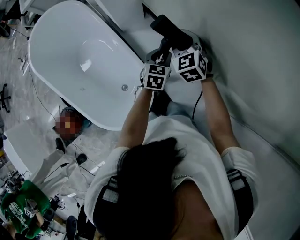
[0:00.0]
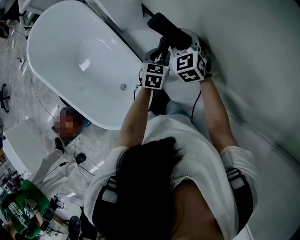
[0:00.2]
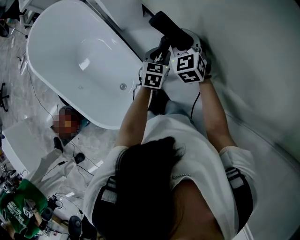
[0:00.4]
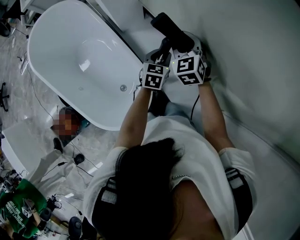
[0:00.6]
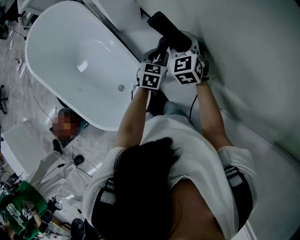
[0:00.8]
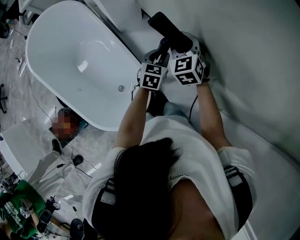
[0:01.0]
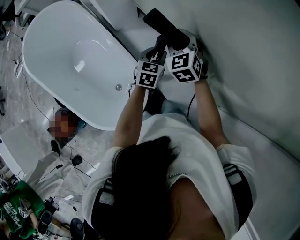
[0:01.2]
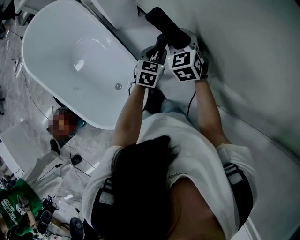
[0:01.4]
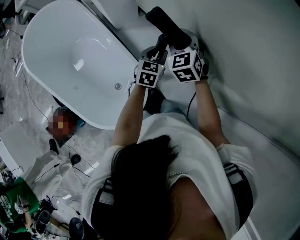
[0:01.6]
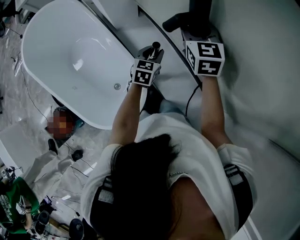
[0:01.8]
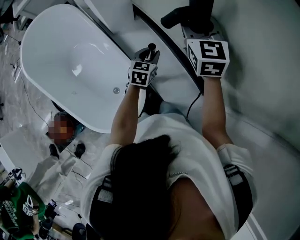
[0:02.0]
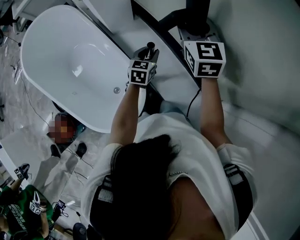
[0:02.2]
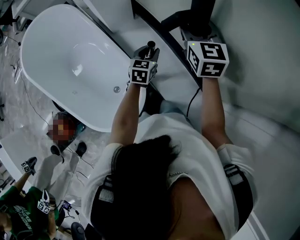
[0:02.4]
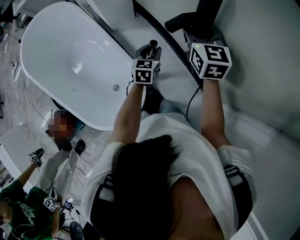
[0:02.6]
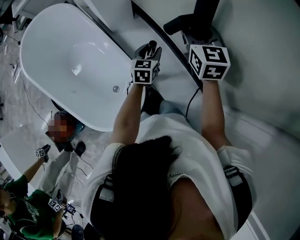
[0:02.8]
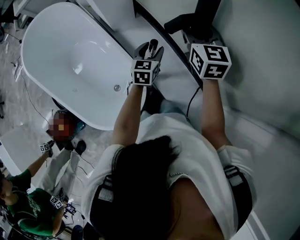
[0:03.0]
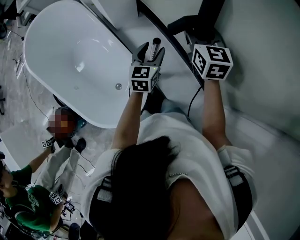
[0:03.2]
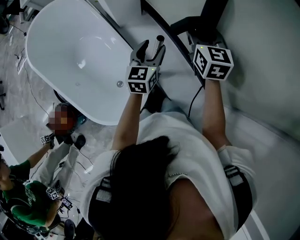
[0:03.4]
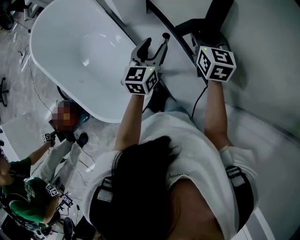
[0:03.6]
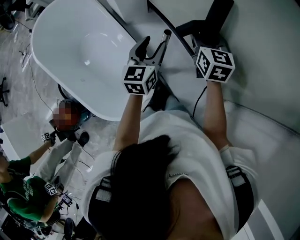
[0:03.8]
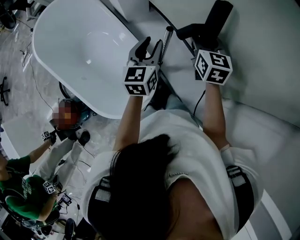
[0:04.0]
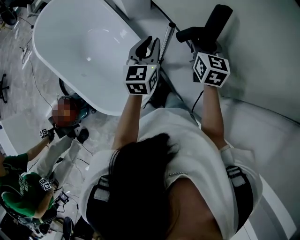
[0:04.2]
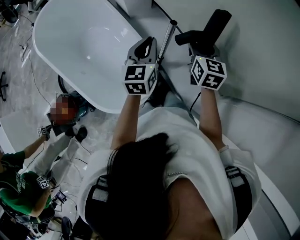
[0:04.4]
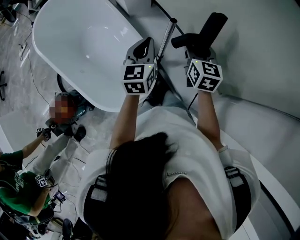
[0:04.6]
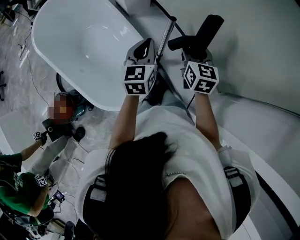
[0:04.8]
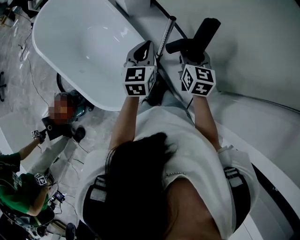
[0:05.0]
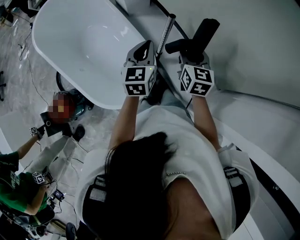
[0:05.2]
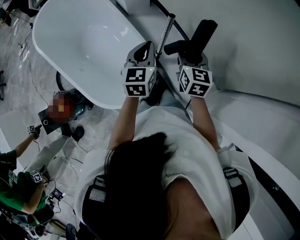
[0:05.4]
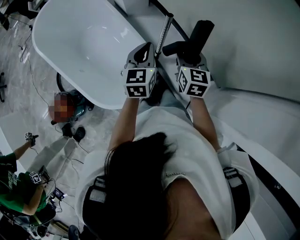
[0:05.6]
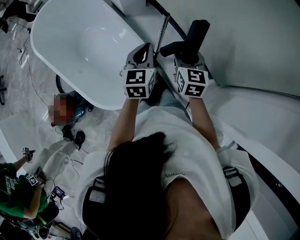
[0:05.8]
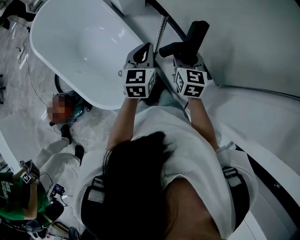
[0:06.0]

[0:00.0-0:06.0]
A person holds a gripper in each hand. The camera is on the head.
0.0 to 1.6 s: The grippers make only small movements.
1.6 to 3.0 s: The left gripper opens up, while the right gripper shifts roughly 10 cm upward, and changes its angle by approximately 30 degrees.
3.0 to 4.4 s: The left gripper heads backward, to the left and upward, covering about 15 cm, and closes its fingers, while the right gripper moves backward and downward, approximately 15 cm.
4.4 to 6.0 s: Both grippers move backward, approximately 10 cm.

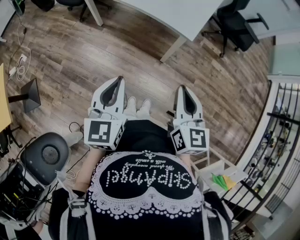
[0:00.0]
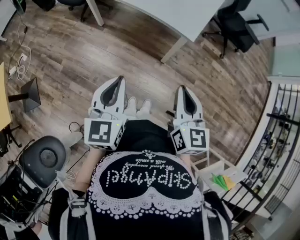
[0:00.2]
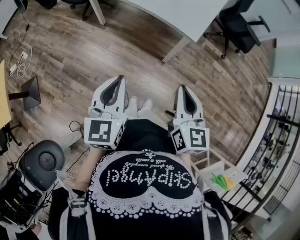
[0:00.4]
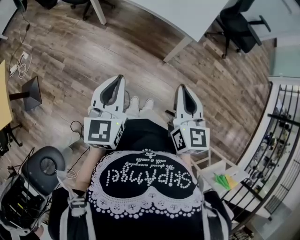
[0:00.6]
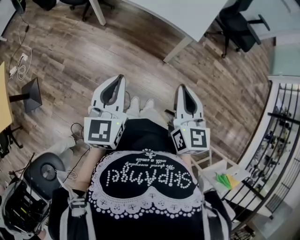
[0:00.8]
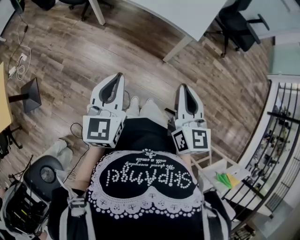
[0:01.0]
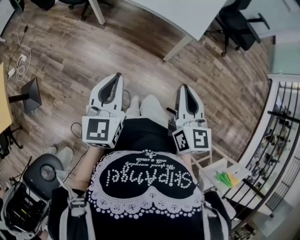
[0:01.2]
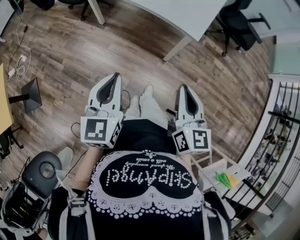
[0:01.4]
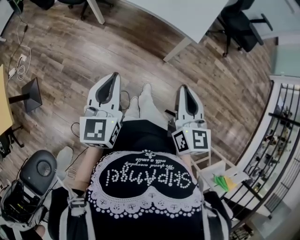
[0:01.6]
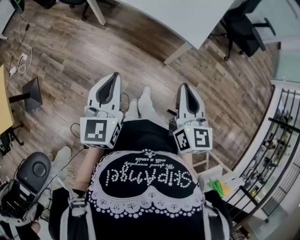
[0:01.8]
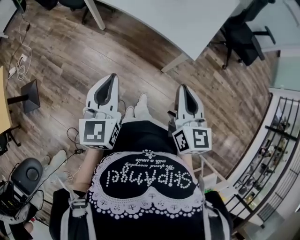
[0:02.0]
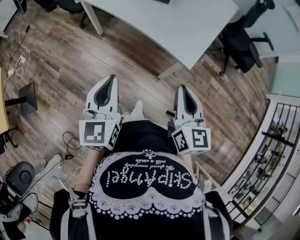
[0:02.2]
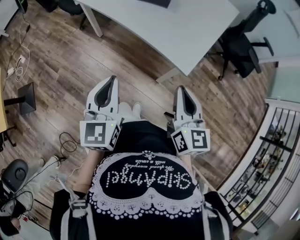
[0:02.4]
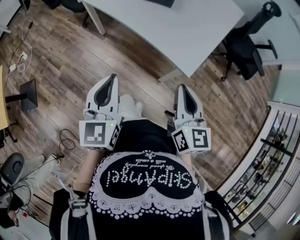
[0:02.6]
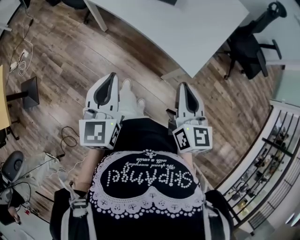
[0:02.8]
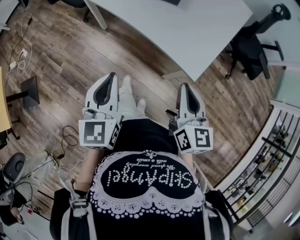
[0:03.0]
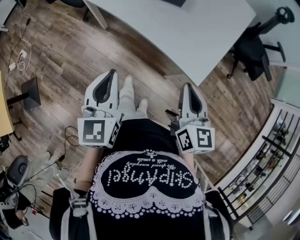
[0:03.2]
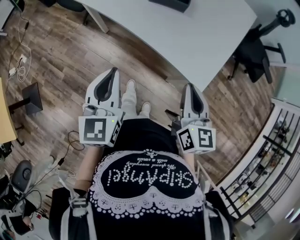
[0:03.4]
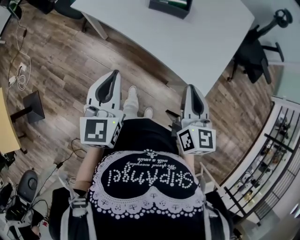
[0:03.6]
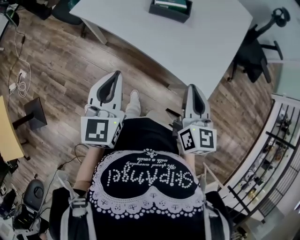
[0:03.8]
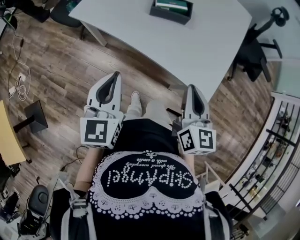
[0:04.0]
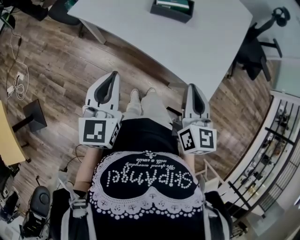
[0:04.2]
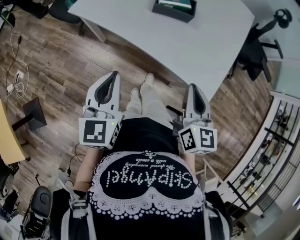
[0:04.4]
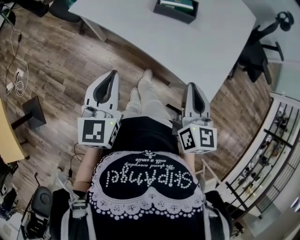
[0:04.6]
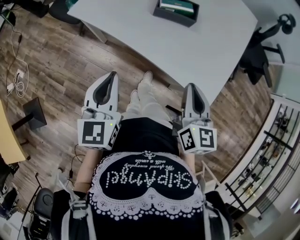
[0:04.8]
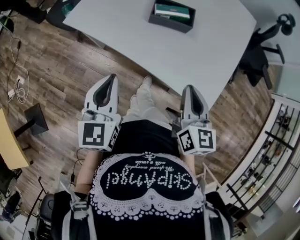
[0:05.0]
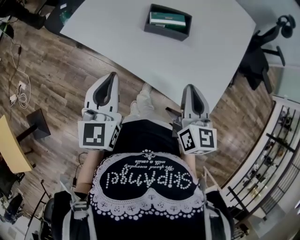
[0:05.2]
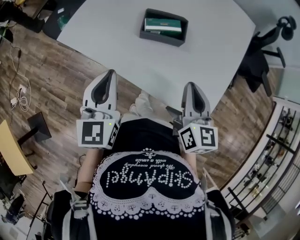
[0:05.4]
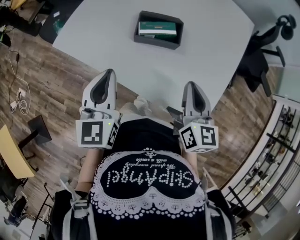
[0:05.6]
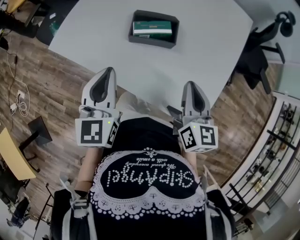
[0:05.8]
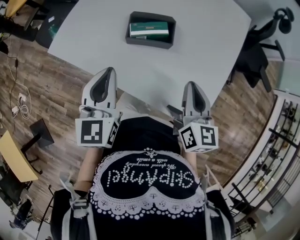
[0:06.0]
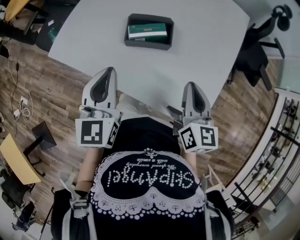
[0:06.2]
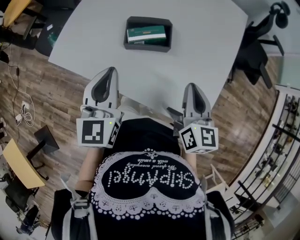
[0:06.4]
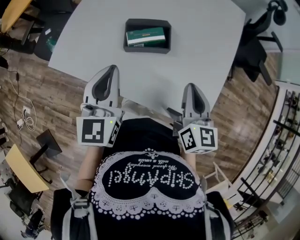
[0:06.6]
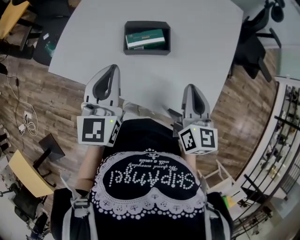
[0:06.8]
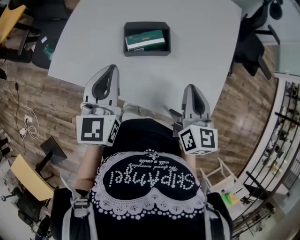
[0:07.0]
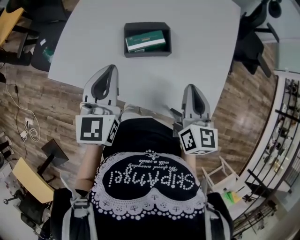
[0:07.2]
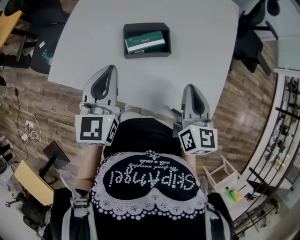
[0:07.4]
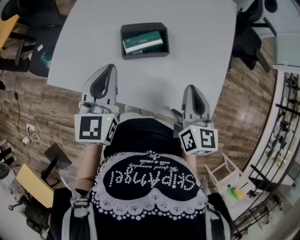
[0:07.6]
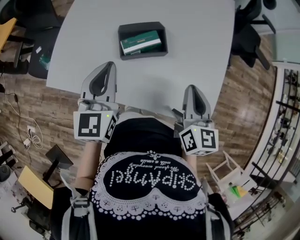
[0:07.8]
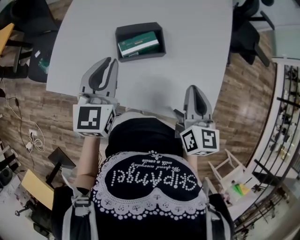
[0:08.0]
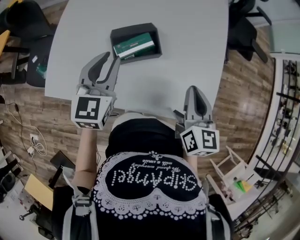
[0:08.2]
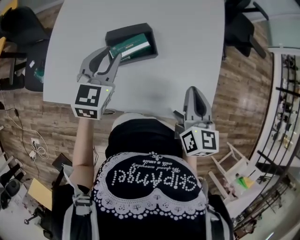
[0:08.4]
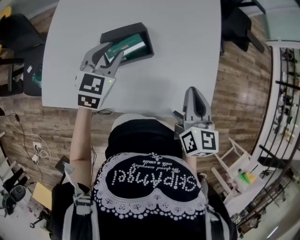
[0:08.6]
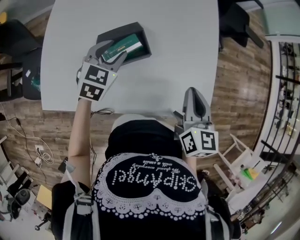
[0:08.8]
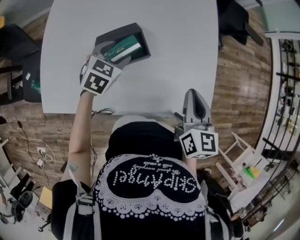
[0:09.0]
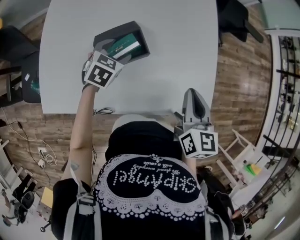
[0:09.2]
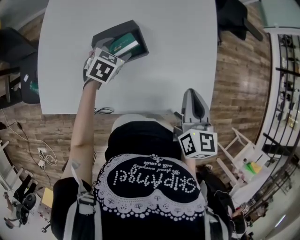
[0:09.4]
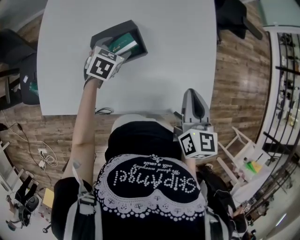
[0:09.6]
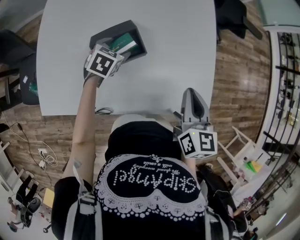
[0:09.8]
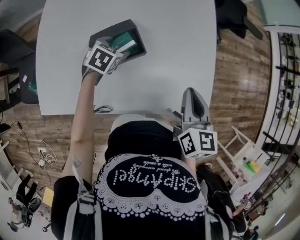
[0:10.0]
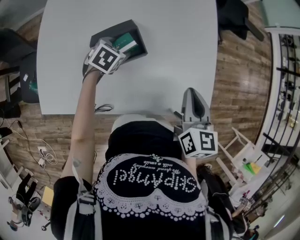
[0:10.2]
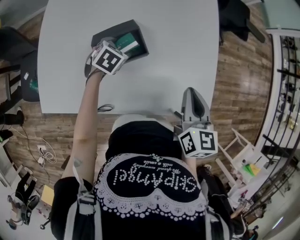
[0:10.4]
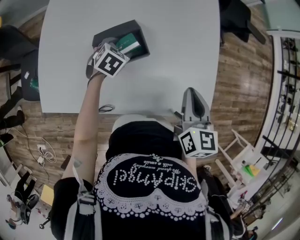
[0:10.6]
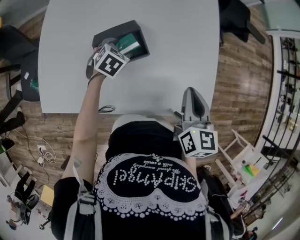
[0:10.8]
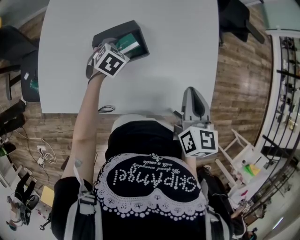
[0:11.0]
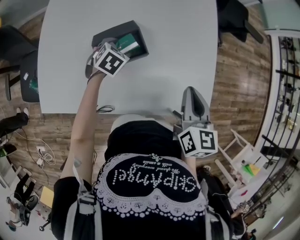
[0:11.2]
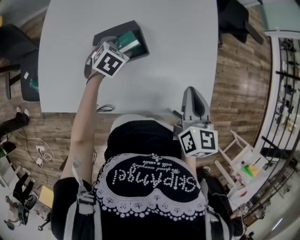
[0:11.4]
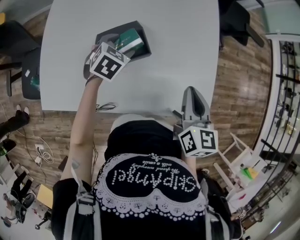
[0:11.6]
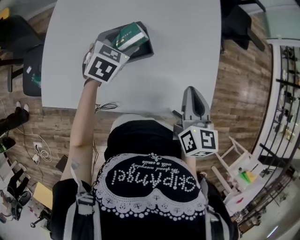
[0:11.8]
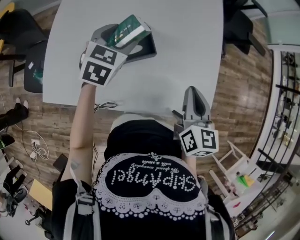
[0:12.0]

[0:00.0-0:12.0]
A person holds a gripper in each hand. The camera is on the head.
0.0 to 1.6 s: The left gripper changes place by roughly 5 cm.
1.6 to 3.0 s: Both grippers move forward, about 20 cm.
3.0 to 4.4 s: Both grippers move forward and to the left, roughly 15 cm.
4.4 to 6.0 s: The left gripper moves forward, about 20 cm, while the right gripper goes approximately 20 cm forward and to the right.
6.0 to 7.6 s: The left gripper heads forward, covering about 10 cm.
7.6 to 9.0 s: The right gripper moves to the right, about 5 cm; the left gripper travels downward, forward and to the right by about 25 cm, points its fingers approximately 30 degrees further downward, and opens its fingers.
9.0 to 10.4 s: The left gripper travels downward by roughly 10 cm.
10.4 to 12.0 s: The left gripper shifts approximately 15 cm upward, and swivels approximately 30 degrees.

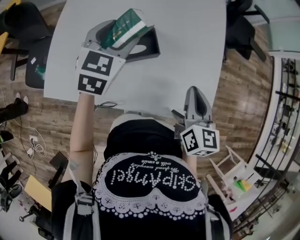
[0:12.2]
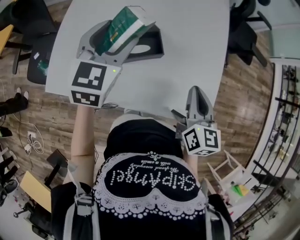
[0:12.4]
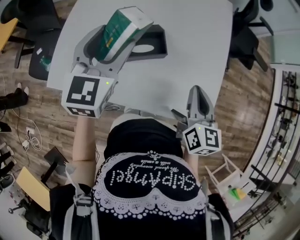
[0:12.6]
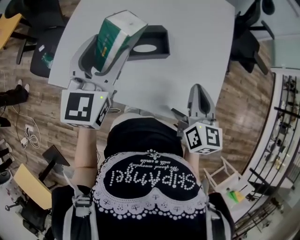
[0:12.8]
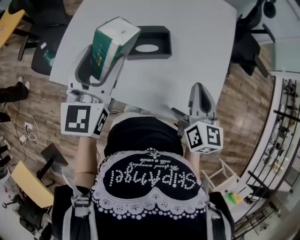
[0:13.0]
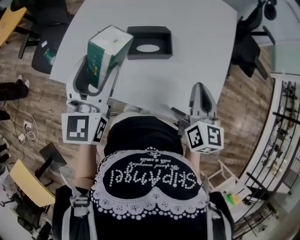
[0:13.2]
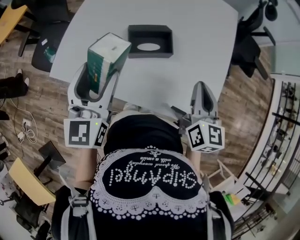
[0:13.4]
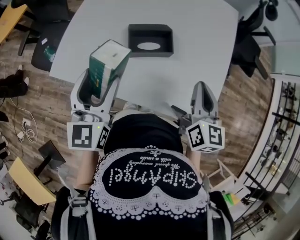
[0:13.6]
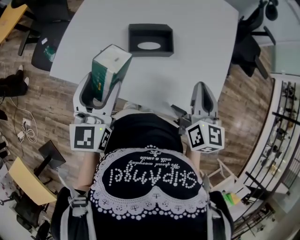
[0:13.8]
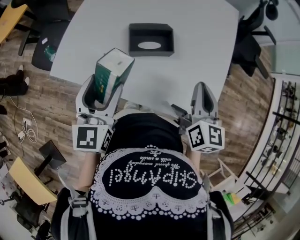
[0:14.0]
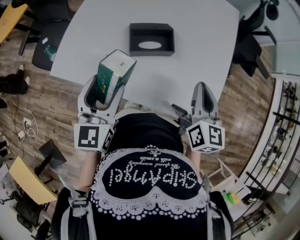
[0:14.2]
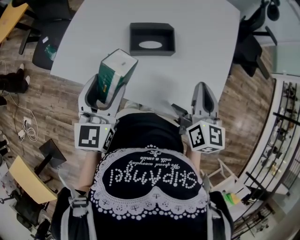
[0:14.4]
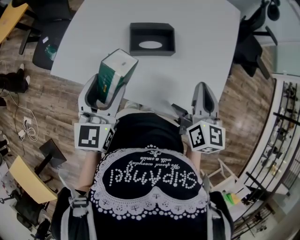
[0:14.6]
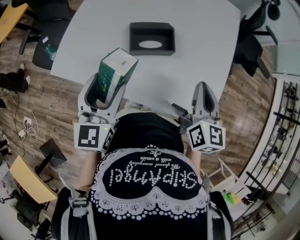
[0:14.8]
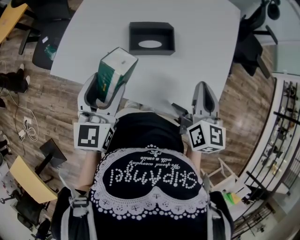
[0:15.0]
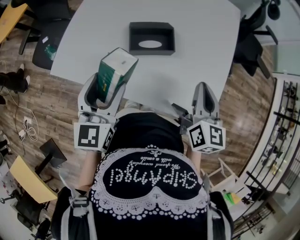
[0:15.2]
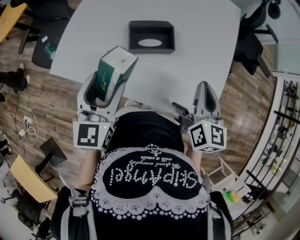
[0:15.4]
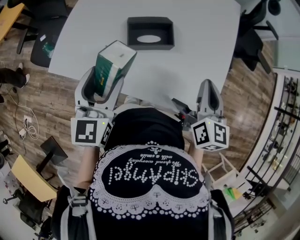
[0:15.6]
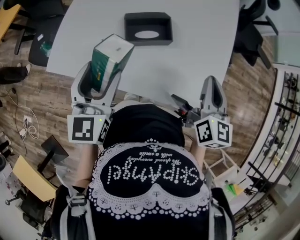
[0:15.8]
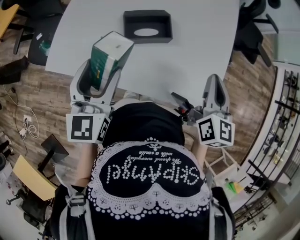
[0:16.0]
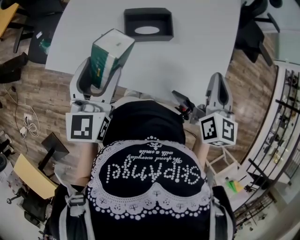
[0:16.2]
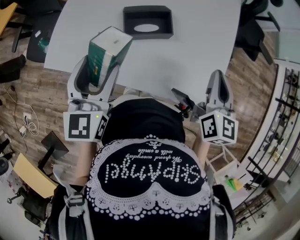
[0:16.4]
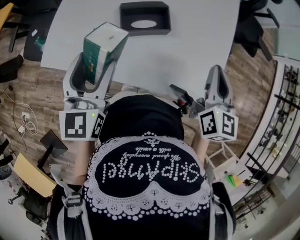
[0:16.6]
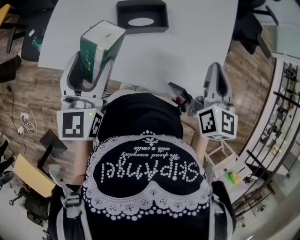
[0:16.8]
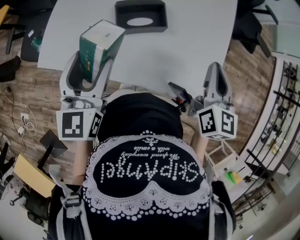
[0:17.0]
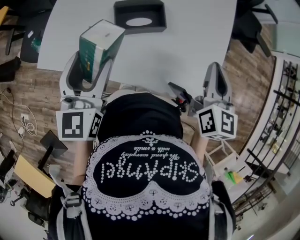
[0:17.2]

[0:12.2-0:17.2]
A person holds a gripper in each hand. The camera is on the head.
12.2 to 13.8 s: The left gripper shifts approximately 20 cm backward and to the left, and rotates roughly 40 degrees.
13.8 to 17.2 s: The grippers stay close to where they were, moving slightly.

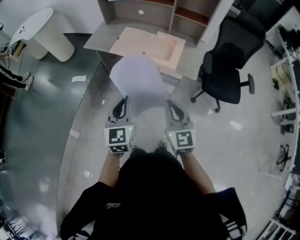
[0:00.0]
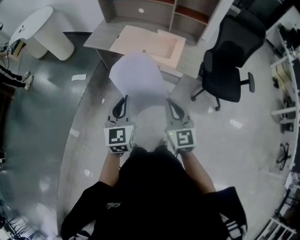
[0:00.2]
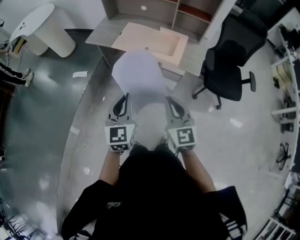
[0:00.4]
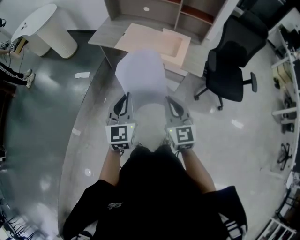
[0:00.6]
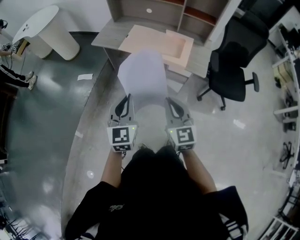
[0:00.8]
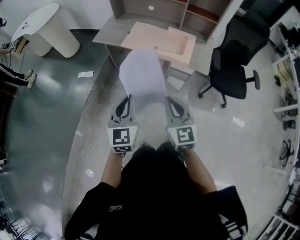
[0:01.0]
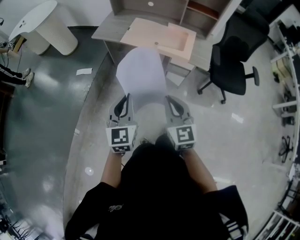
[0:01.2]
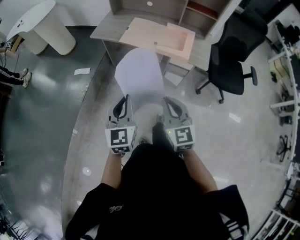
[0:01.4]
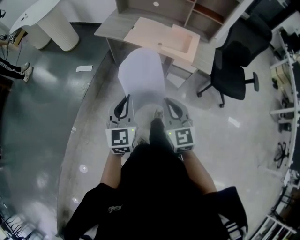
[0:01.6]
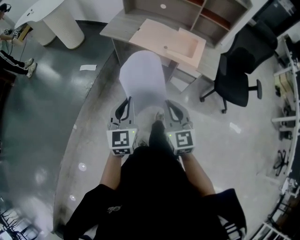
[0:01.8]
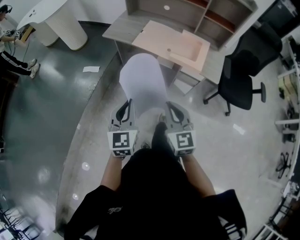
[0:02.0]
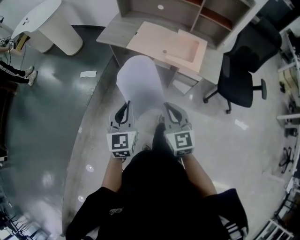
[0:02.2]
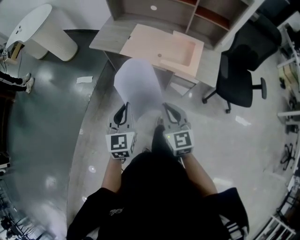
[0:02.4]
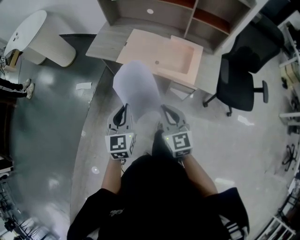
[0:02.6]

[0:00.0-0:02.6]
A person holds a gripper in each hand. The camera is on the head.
0.0 to 1.2 s: Both grippers travel together to the left, approximately 10 cm.
1.2 to 2.6 s: Both grippers move forward, some 15 cm.
